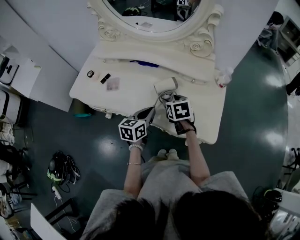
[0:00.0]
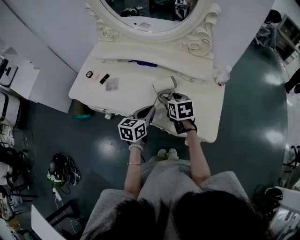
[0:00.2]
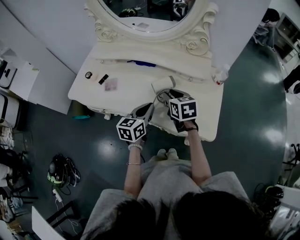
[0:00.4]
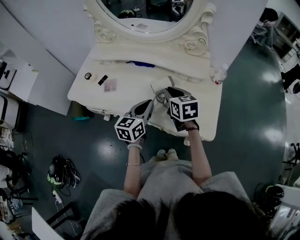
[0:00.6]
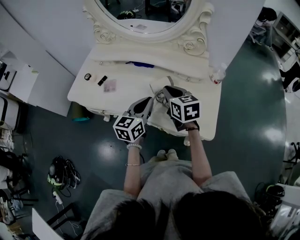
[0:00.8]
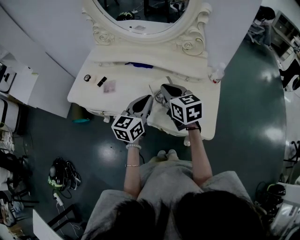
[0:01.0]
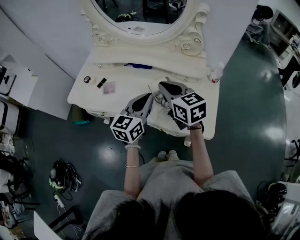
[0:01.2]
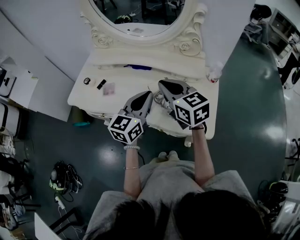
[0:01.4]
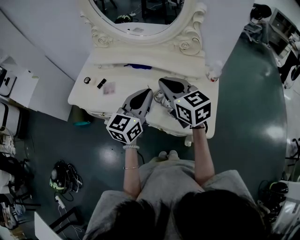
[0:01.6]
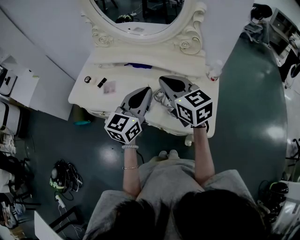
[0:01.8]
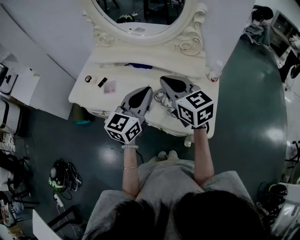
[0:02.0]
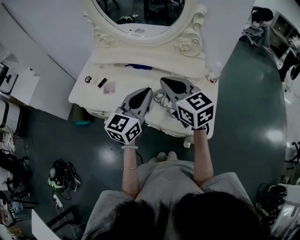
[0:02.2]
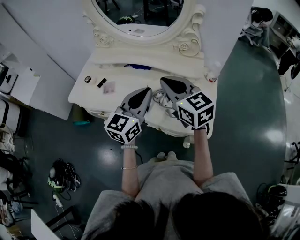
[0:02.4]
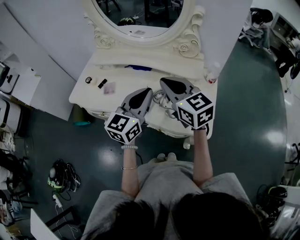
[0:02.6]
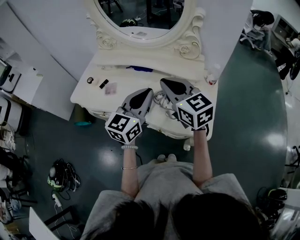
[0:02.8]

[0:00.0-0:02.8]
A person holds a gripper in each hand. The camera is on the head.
0:00.0 to 0:01.4: Both grippers move upward, about 20 cm. The right gripper tilts its fingers about 30 degrees upward, and closes. Meanwhile the left gripper turns by about 30 degrees.
0:01.4 to 0:02.8: The left gripper moves roughly 5 cm.

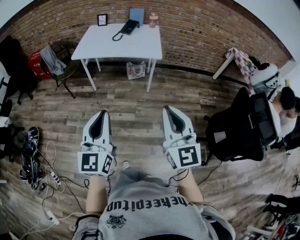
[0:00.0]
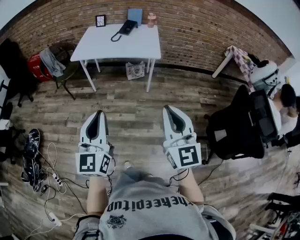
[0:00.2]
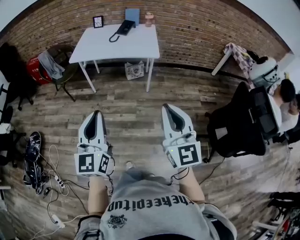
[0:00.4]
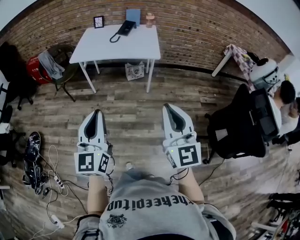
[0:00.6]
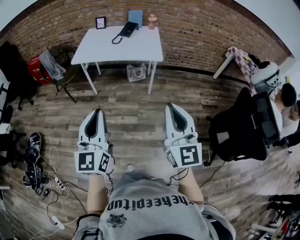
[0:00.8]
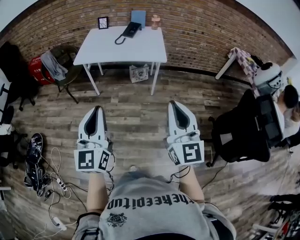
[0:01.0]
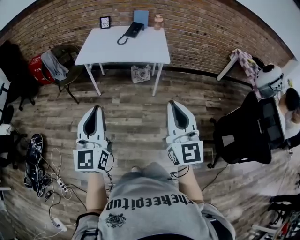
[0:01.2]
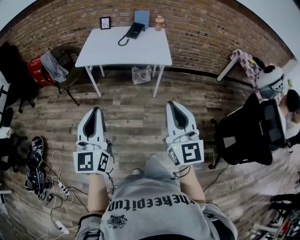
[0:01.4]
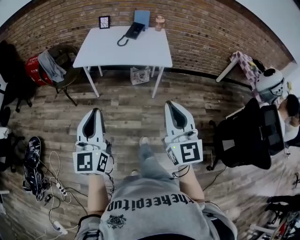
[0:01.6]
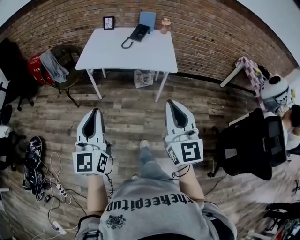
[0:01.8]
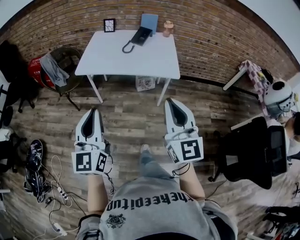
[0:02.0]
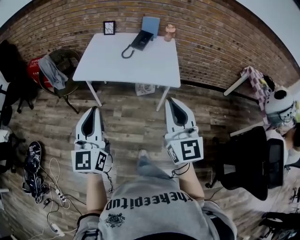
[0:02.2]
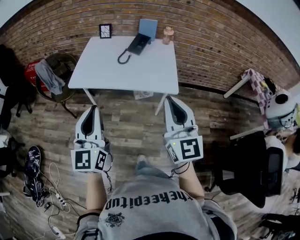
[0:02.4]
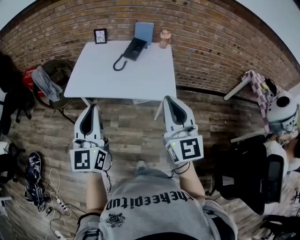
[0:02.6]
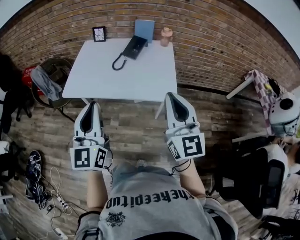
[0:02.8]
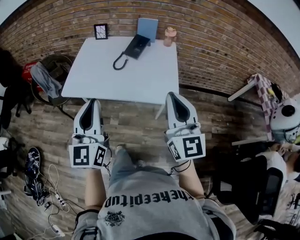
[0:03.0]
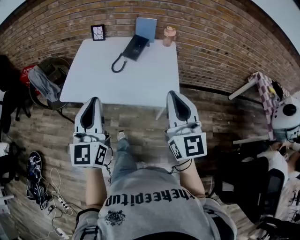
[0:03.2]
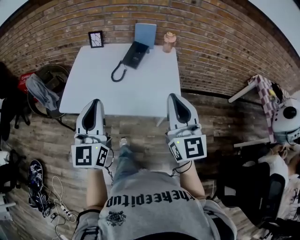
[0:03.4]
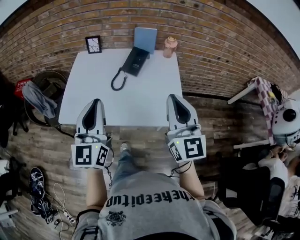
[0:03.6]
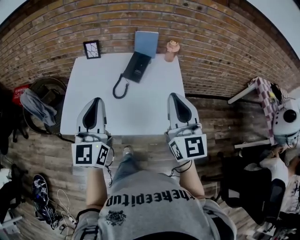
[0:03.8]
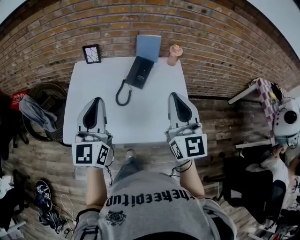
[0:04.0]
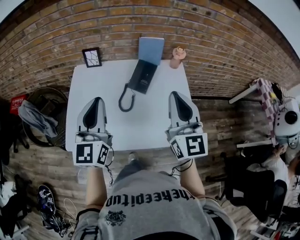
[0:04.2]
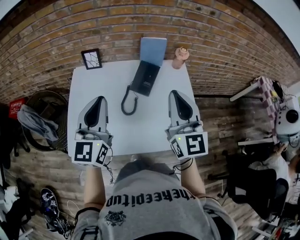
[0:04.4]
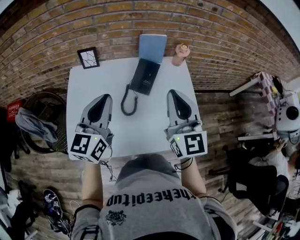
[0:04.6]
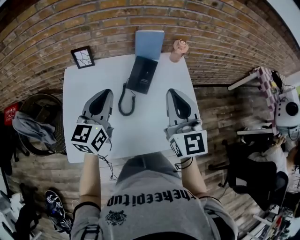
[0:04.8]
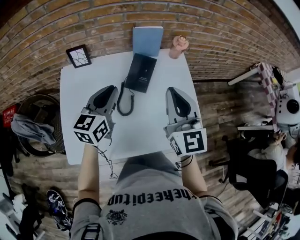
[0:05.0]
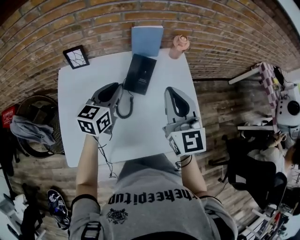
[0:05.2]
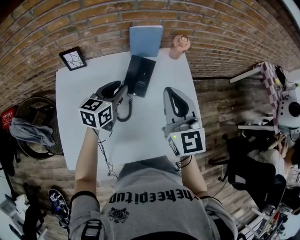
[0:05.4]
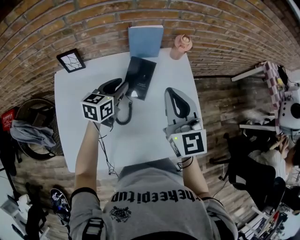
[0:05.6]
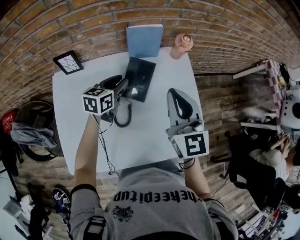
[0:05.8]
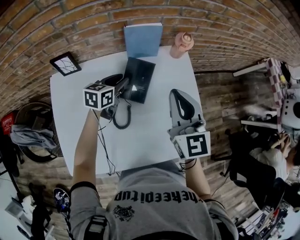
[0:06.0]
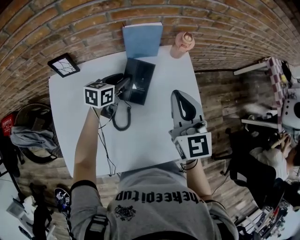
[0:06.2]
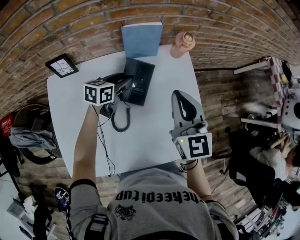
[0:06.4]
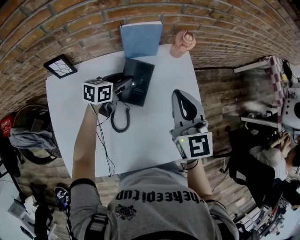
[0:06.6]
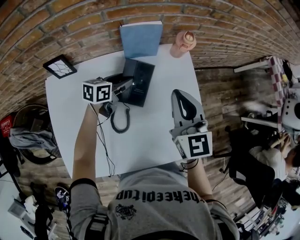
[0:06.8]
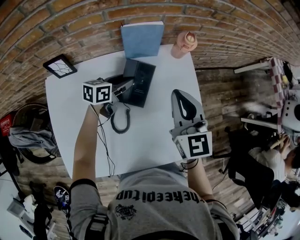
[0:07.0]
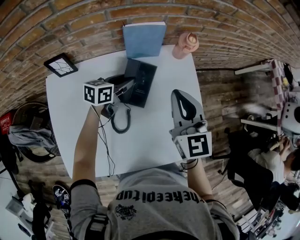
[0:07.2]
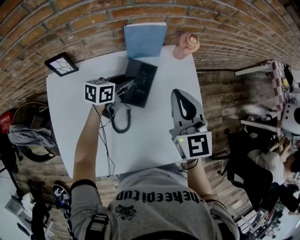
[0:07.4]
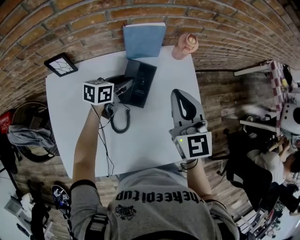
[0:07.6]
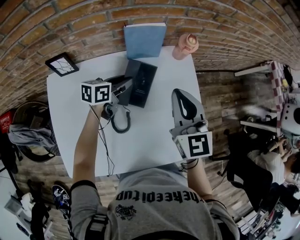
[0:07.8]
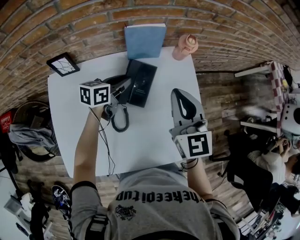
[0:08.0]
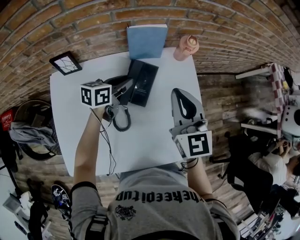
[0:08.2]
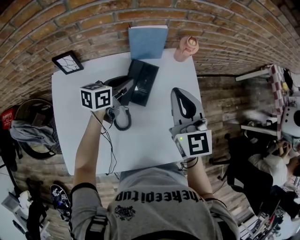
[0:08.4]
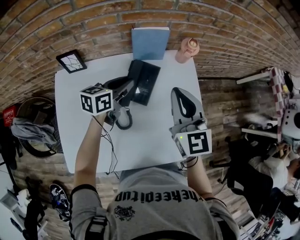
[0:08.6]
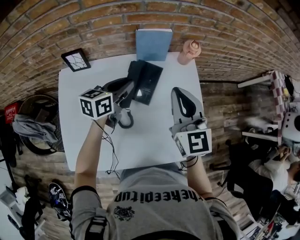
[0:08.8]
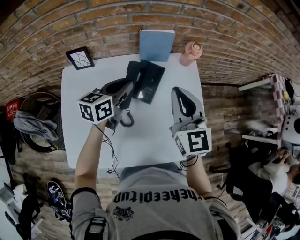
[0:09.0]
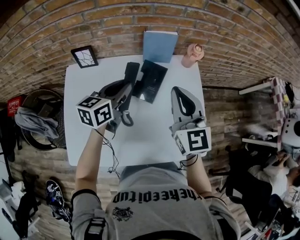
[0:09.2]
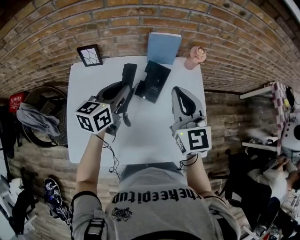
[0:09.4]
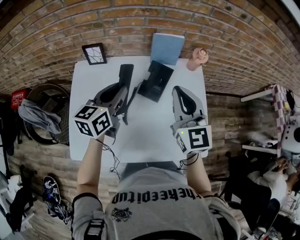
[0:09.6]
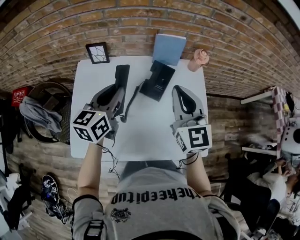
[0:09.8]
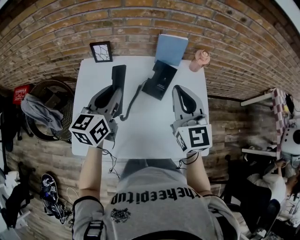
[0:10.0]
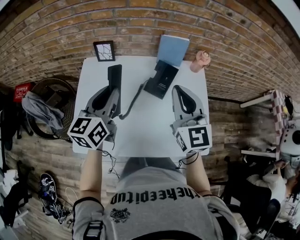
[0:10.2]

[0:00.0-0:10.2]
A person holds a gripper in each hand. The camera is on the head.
0:00.0 to 0:01.4: The left gripper is displaced to the left and forward by approximately 15 cm; the right gripper is displaced forward and to the left by approximately 10 cm.
0:01.4 to 0:03.0: Both grippers travel together forward, some 40 cm.
0:03.0 to 0:04.4: The two grippers go roughly 35 cm forward.
0:04.4 to 0:05.8: The right gripper shifts roughly 15 cm forward and downward; the left gripper is displaced forward and downward by some 35 cm, angles its fingers downward, by roughly 30 degrees, and opens its fingers.
0:05.8 to 0:07.2: The right gripper ends up about 5 cm from where it was; the left gripper moves downward, some 5 cm.
0:07.2 to 0:08.8: The left gripper travels upward and backward by some 10 cm, and closes its fingers.
0:08.8 to 0:10.2: The right gripper shifts about 10 cm backward, to the left and upward. The left gripper moves backward, upward and to the left, some 25 cm, and changes its angle by some 30 degrees.

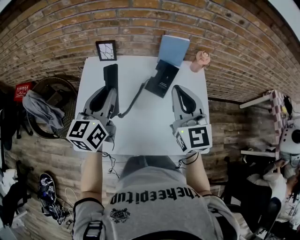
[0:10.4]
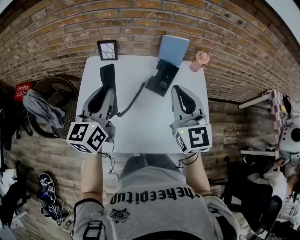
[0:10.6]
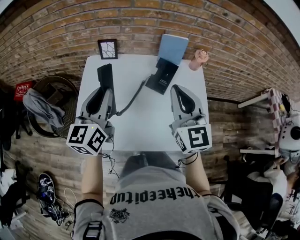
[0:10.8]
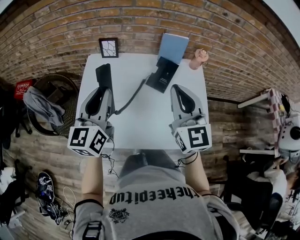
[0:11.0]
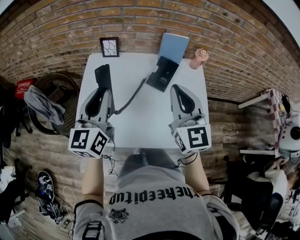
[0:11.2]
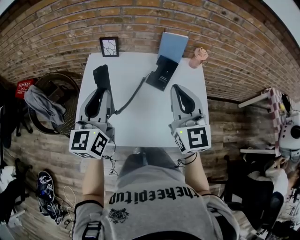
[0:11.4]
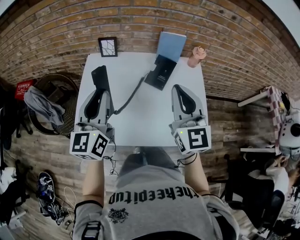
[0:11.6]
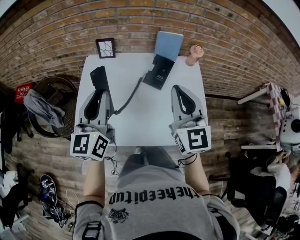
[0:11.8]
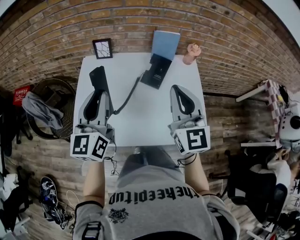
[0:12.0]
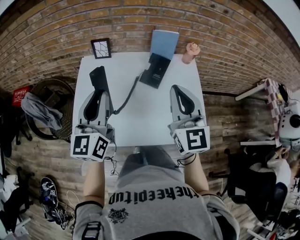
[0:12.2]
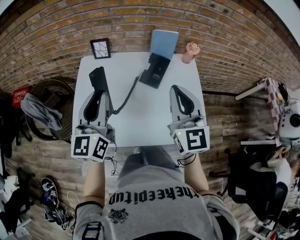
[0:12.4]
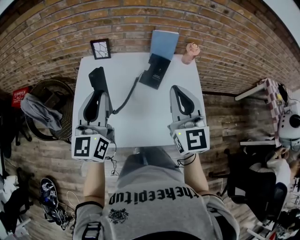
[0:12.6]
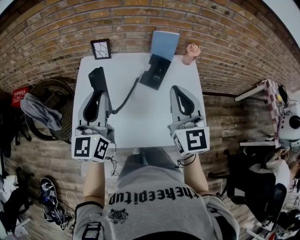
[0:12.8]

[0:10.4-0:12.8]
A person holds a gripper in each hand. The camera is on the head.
0:10.4 to 0:11.6: The two grippers go approximately 5 cm backward.
0:11.6 to 0:12.8: The grippers make only small movements.

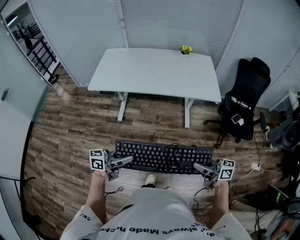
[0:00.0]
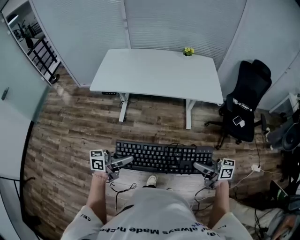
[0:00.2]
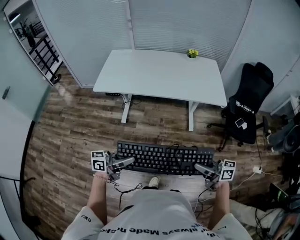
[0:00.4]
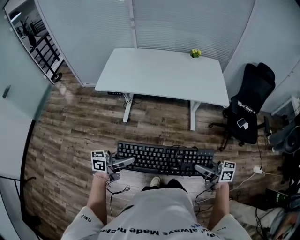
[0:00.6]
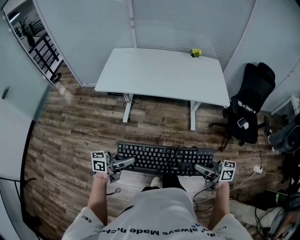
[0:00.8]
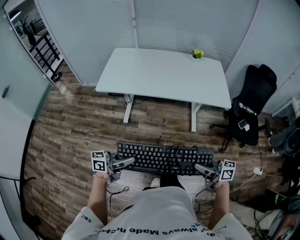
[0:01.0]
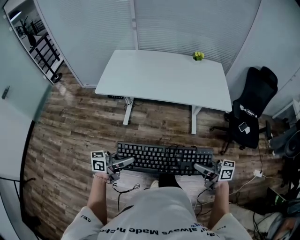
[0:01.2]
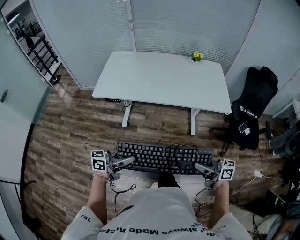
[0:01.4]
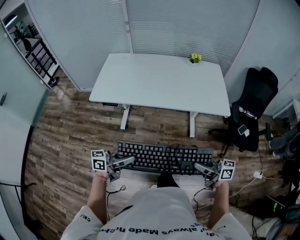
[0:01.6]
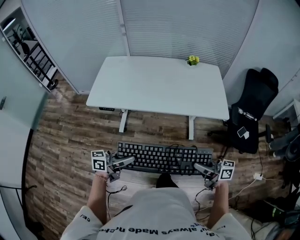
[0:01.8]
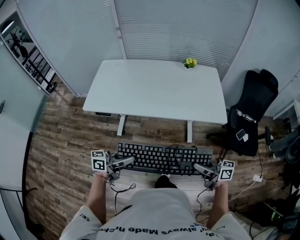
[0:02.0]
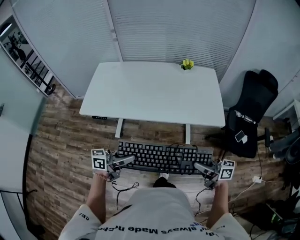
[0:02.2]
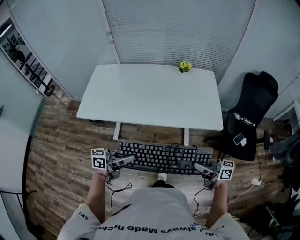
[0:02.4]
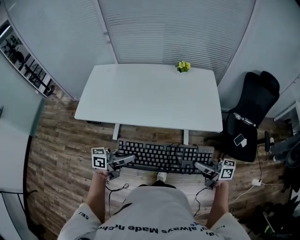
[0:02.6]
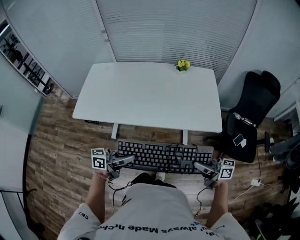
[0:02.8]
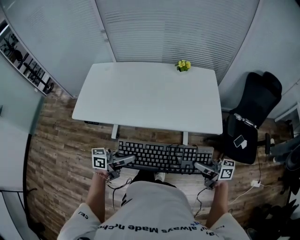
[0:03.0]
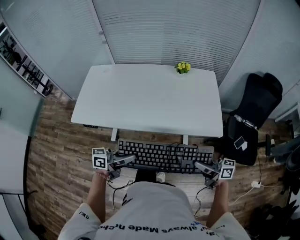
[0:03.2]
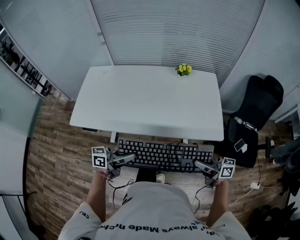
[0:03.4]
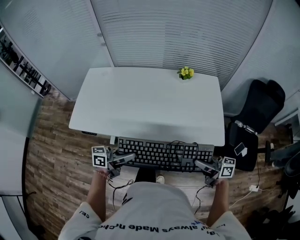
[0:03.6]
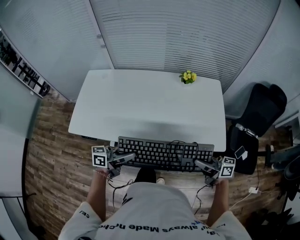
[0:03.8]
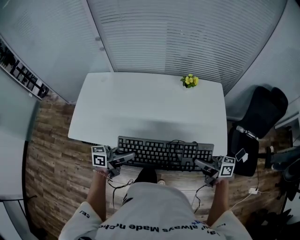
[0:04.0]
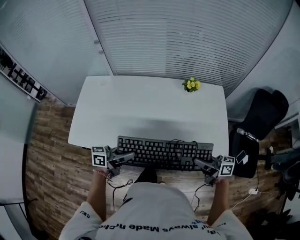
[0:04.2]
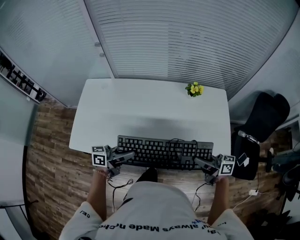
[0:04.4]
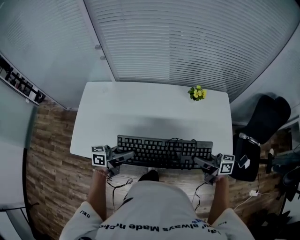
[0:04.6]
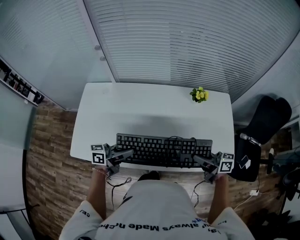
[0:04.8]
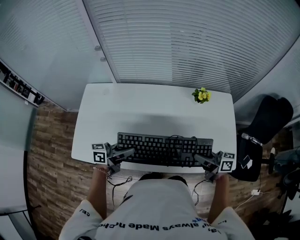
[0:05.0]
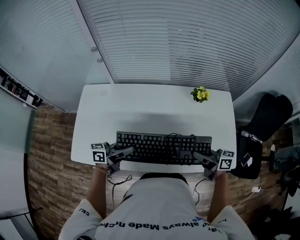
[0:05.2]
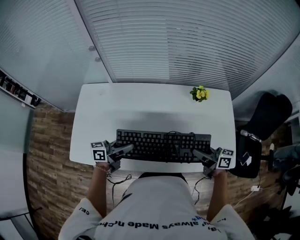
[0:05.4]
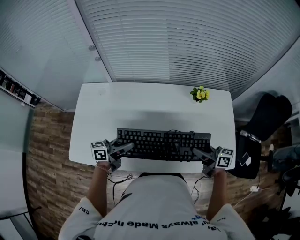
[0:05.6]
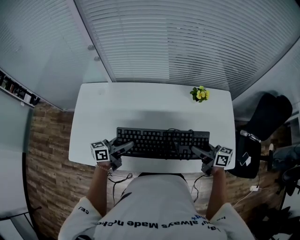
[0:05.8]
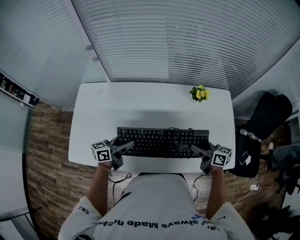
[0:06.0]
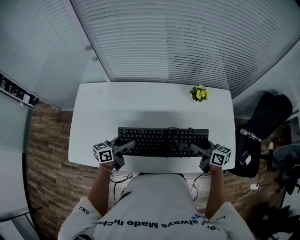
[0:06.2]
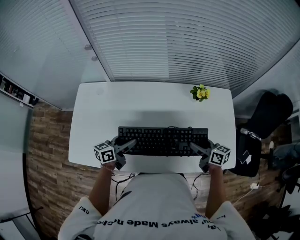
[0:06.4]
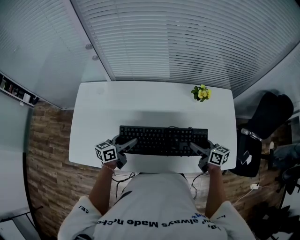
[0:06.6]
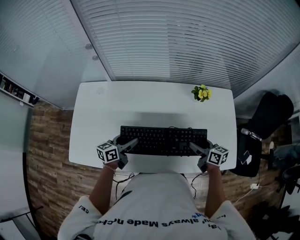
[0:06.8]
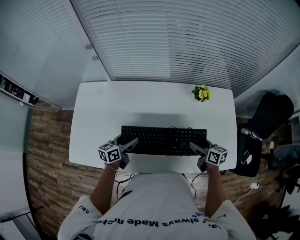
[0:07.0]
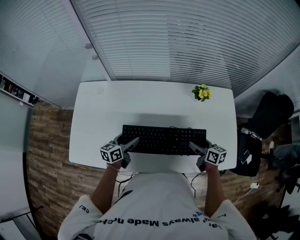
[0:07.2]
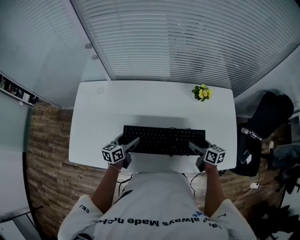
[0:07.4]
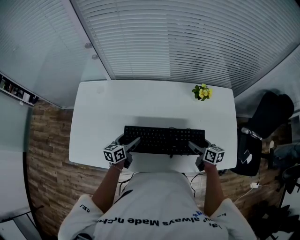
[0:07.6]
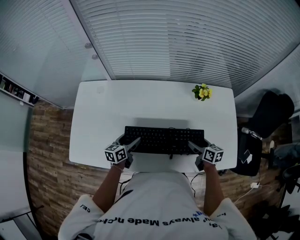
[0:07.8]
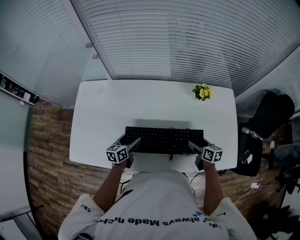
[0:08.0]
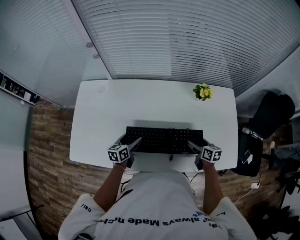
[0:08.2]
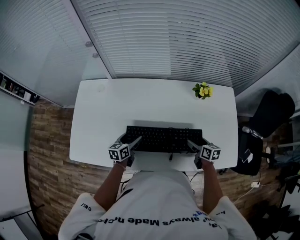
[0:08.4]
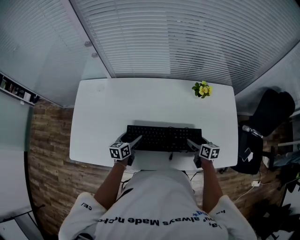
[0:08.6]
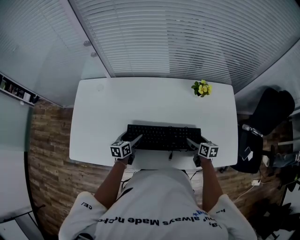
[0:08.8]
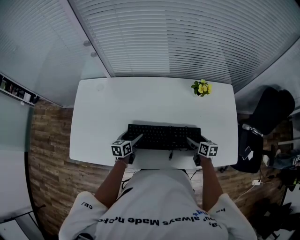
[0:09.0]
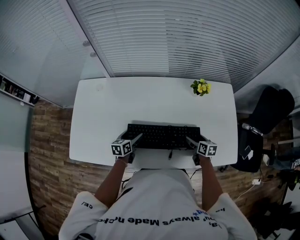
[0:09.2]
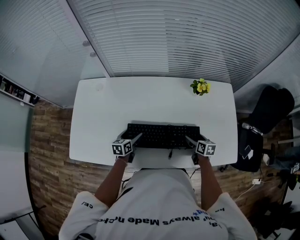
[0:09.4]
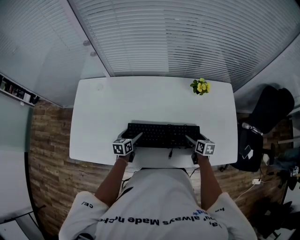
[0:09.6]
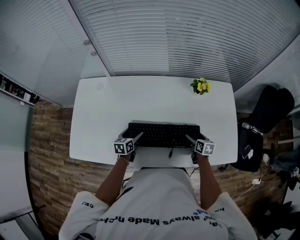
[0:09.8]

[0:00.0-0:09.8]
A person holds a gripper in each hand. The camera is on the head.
0:00.0 to 0:01.4: The left gripper changes place by some 10 cm, while the right gripper changes place by roughly 10 cm.
0:01.4 to 0:02.8: The left gripper moves about 25 cm, while the right gripper ends up about 25 cm from where it was.
0:02.8 to 0:04.2: The right gripper changes place by some 20 cm; the left gripper shifts by about 25 cm.
0:04.2 to 0:05.6: Both grippers travel together forward and to the left, approximately 15 cm.
0:05.6 to 0:07.0: Both grippers move downward, about 5 cm. The left gripper swivels approximately 20 degrees, and opens up. Meanwhile the right gripper changes its angle by some 20 degrees, and opens up.
0:07.0 to 0:08.4: Both grippers travel together downward, roughly 10 cm.
0:08.4 to 0:09.8: There are only small adjustments of the grippers.
